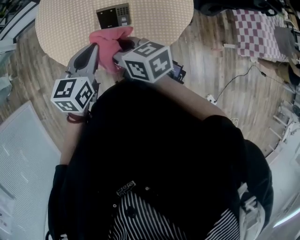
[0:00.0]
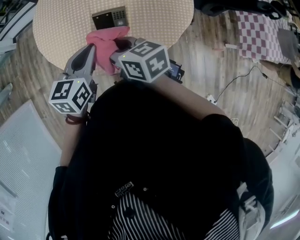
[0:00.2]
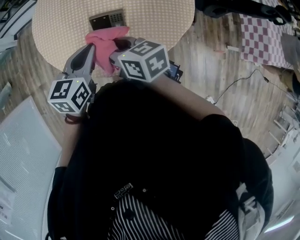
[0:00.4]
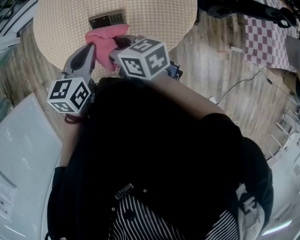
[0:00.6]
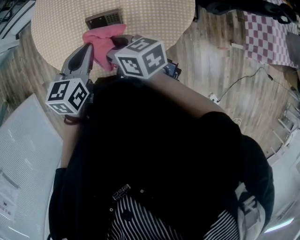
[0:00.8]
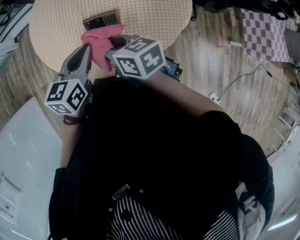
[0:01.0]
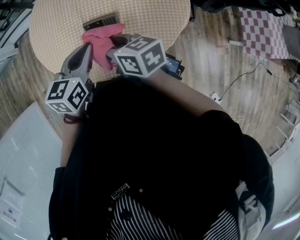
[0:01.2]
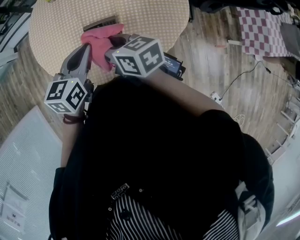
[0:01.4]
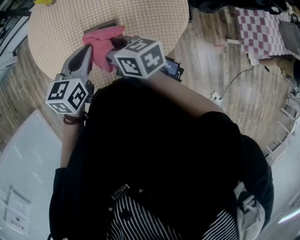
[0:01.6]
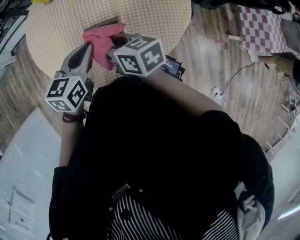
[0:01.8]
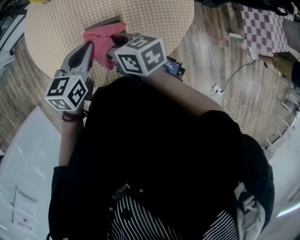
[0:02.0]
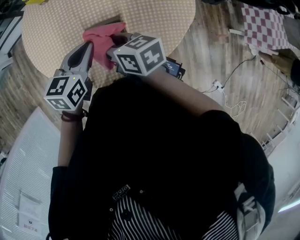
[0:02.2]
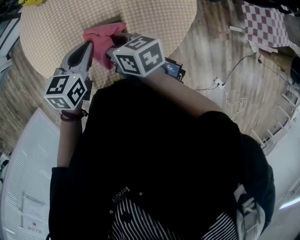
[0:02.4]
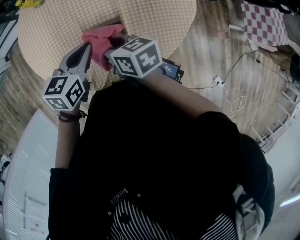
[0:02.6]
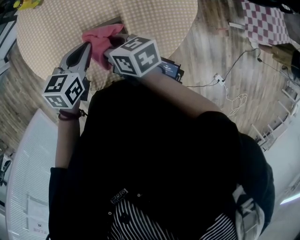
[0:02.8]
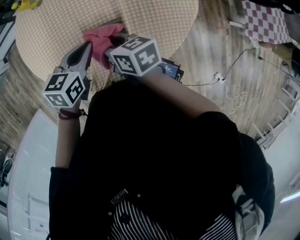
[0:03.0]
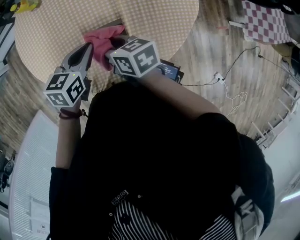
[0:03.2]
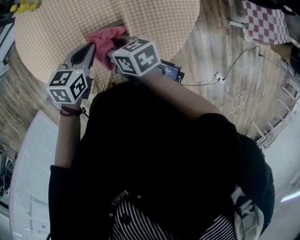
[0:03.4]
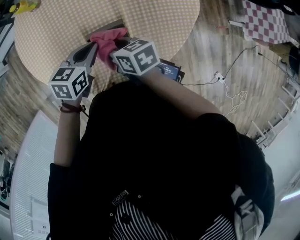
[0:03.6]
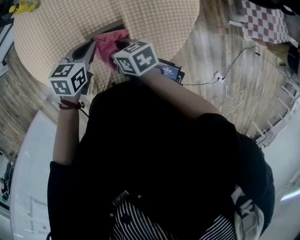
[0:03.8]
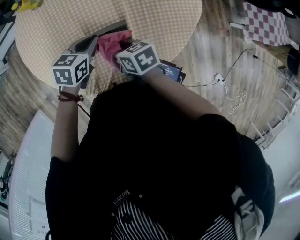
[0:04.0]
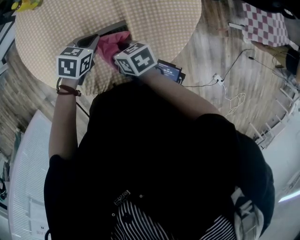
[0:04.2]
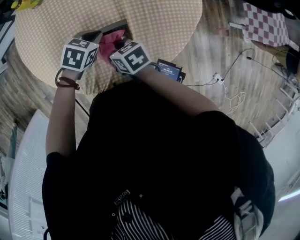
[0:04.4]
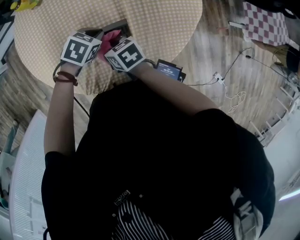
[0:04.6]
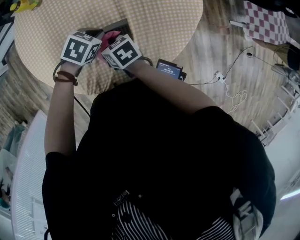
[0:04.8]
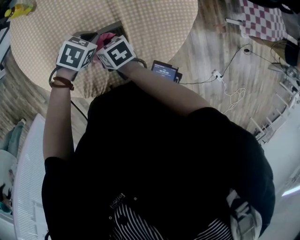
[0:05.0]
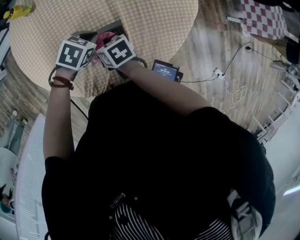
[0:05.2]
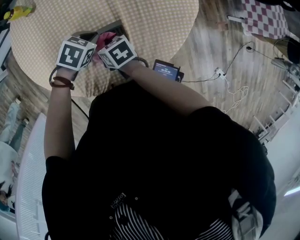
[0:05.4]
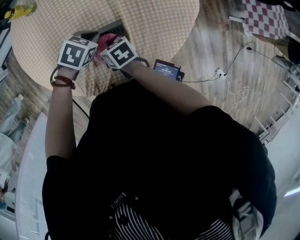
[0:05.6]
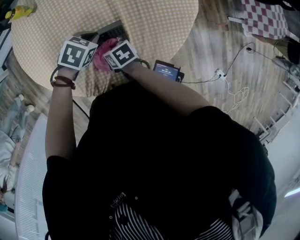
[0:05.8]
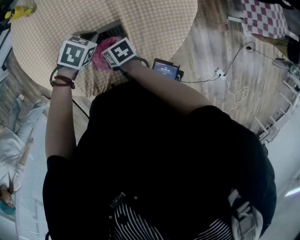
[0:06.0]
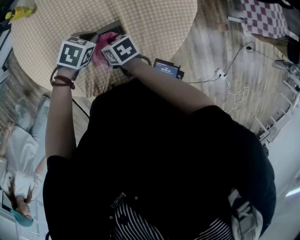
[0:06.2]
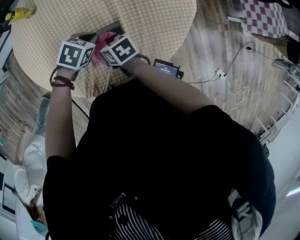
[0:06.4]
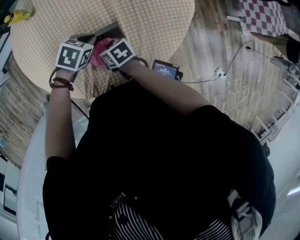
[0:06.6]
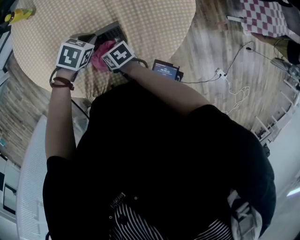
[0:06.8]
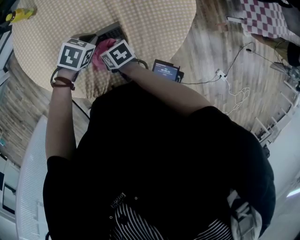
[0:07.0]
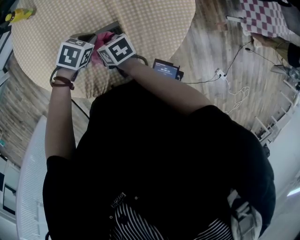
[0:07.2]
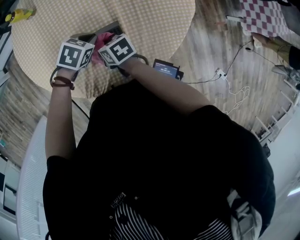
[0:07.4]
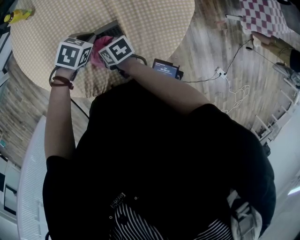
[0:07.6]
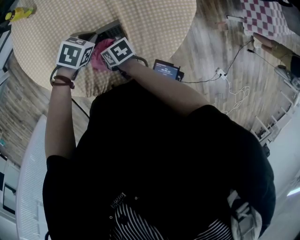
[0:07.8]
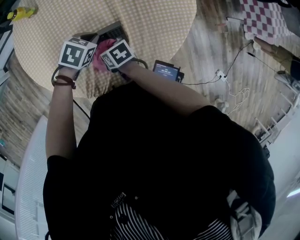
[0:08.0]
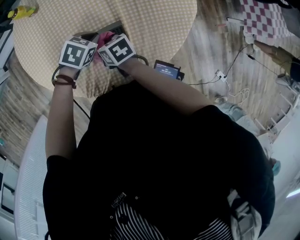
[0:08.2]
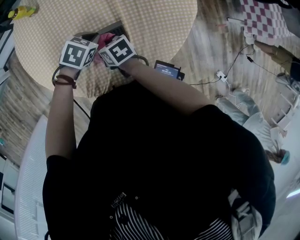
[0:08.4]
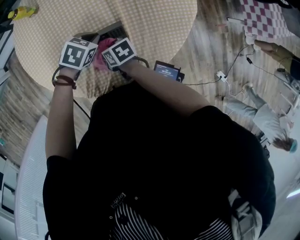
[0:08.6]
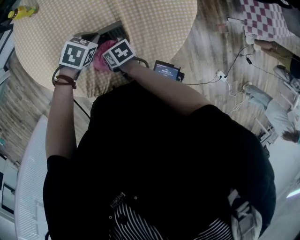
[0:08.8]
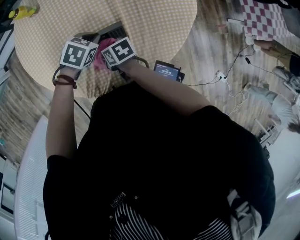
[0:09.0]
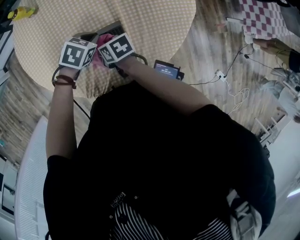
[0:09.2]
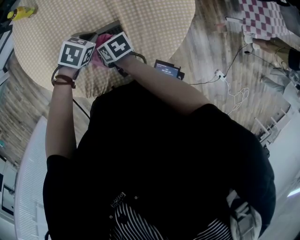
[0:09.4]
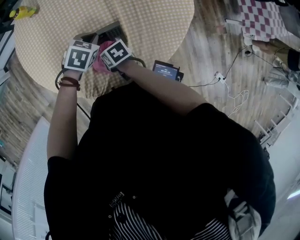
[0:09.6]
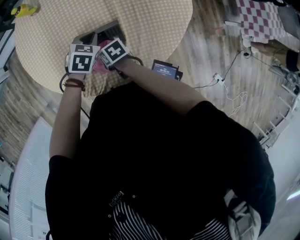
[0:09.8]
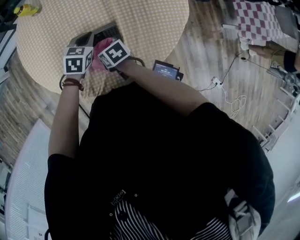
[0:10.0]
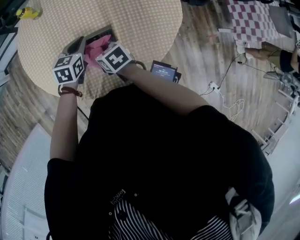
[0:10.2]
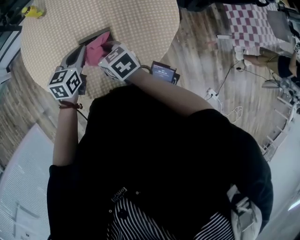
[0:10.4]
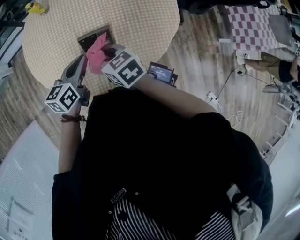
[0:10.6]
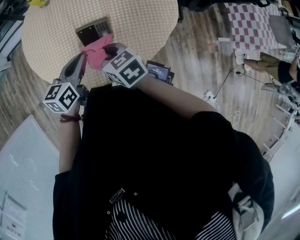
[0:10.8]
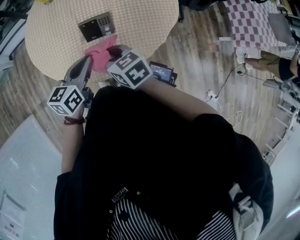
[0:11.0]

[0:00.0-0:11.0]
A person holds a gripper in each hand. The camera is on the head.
0:00.0 to 0:01.6: Both grippers travel together forward and to the right, approximately 15 cm.
0:01.6 to 0:03.2: Both grippers move downward and forward, roughly 15 cm.
0:03.2 to 0:04.8: The two grippers go about 10 cm downward. The left gripper changes its angle by roughly 40 degrees.
0:06.2 to 0:07.8: The right gripper moves up and down over about 5 cm, changing direction 2 times.
0:07.8 to 0:09.4: The right gripper moves up and down over approximately 5 cm, changing direction 2 times.
0:09.4 to 0:11.0: The left gripper shifts by roughly 30 cm, and tilts its fingers about 40 degrees upward. Meanwhile the right gripper moves upward, approximately 20 cm, and turns by some 30 degrees.

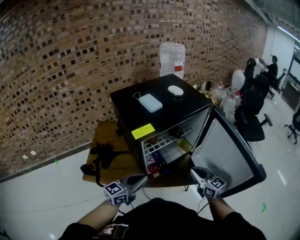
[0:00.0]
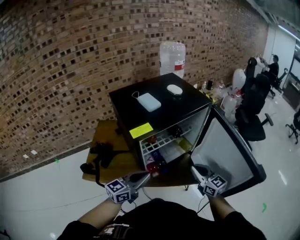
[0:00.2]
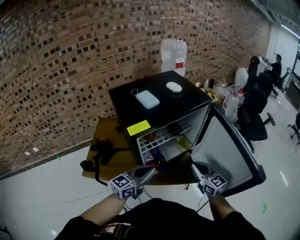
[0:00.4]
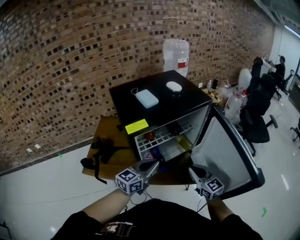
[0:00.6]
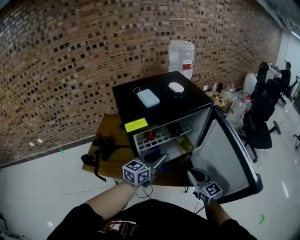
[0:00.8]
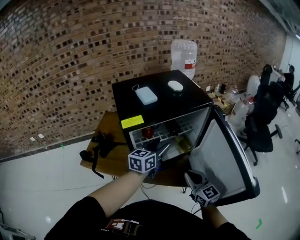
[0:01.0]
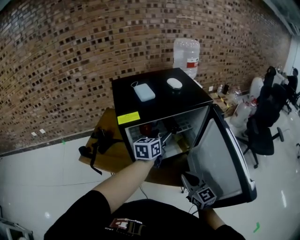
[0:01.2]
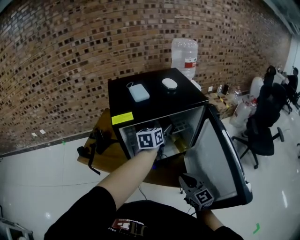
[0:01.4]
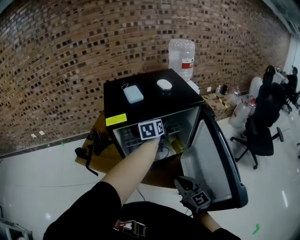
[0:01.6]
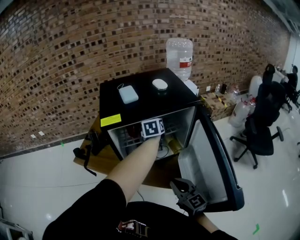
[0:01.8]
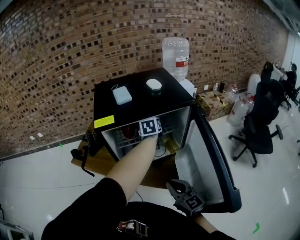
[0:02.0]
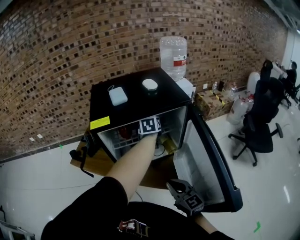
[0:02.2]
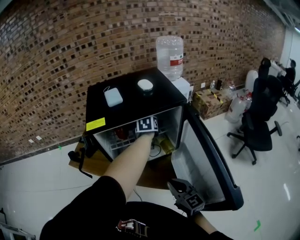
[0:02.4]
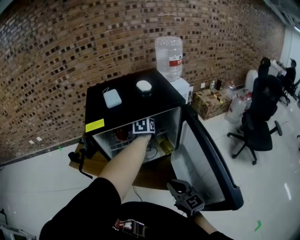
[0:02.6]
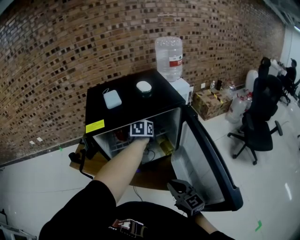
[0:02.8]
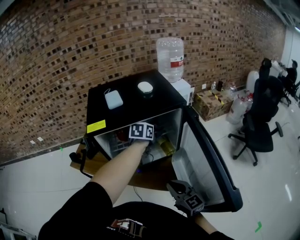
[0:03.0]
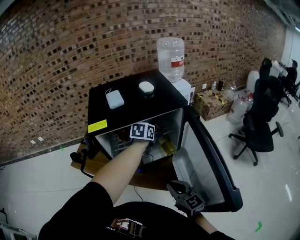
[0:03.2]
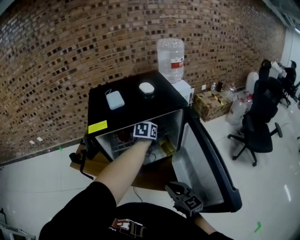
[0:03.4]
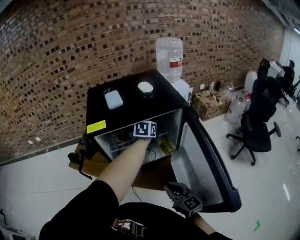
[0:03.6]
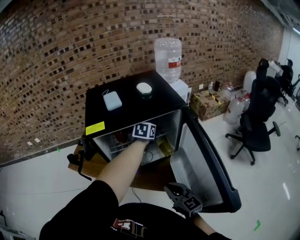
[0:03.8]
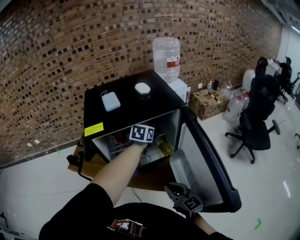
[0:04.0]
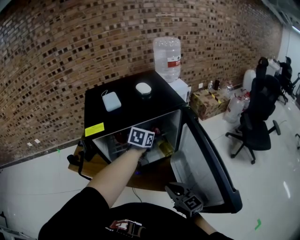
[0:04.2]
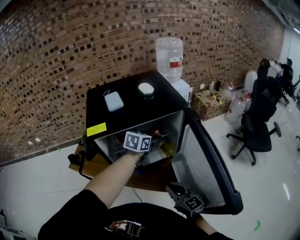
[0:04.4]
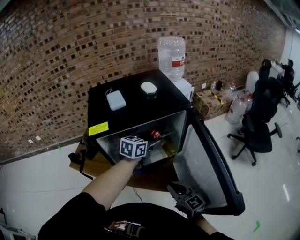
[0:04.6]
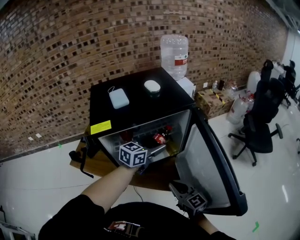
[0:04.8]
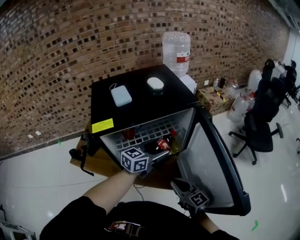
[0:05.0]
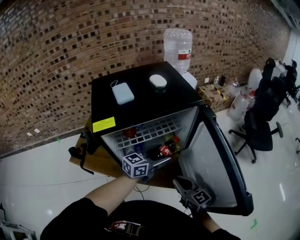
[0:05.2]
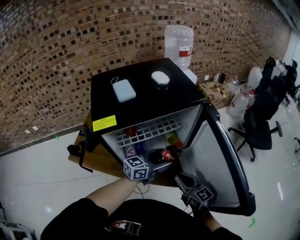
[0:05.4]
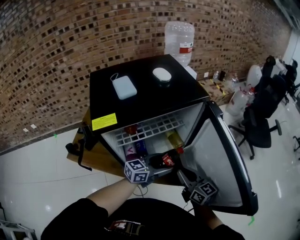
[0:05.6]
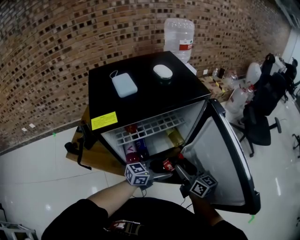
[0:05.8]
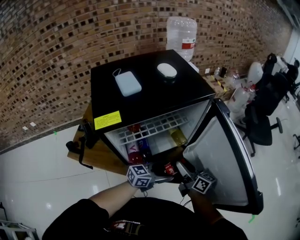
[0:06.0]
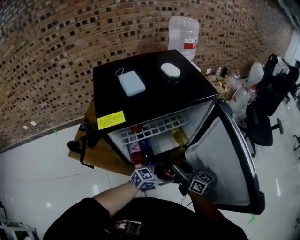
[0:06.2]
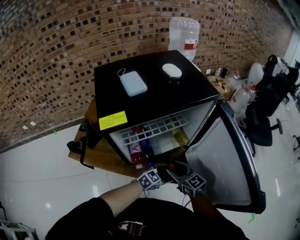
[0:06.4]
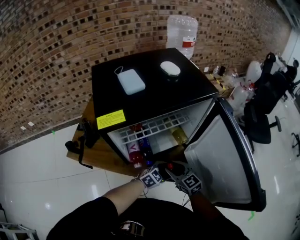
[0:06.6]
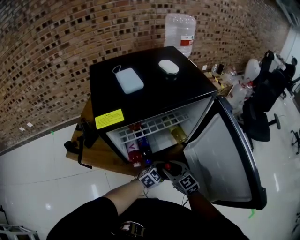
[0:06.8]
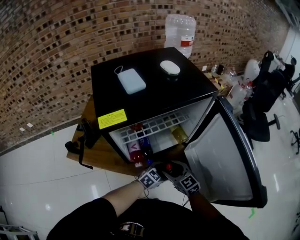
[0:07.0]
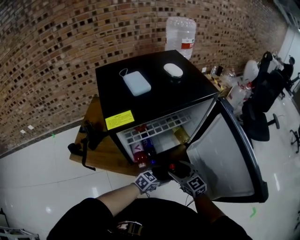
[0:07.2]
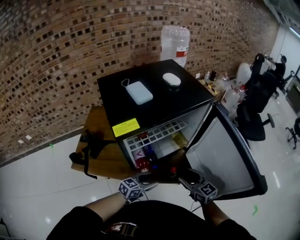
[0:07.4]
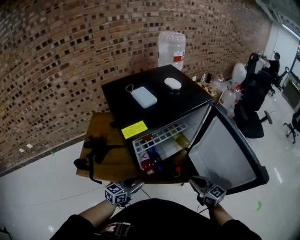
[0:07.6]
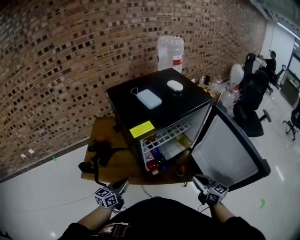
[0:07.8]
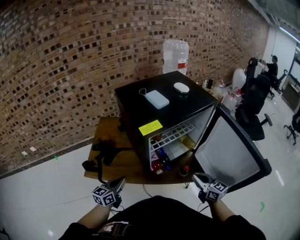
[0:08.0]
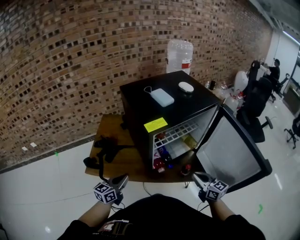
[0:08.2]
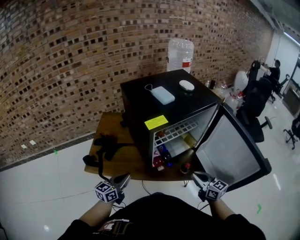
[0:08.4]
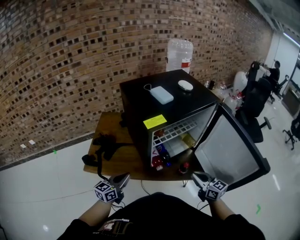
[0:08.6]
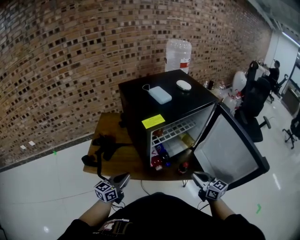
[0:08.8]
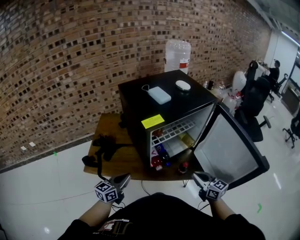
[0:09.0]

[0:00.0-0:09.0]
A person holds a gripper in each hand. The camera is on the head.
0:00.0 to 0:01.6: The right gripper changes place by approximately 5 cm; the left gripper changes place by about 35 cm, turns by about 50 degrees, and opens up.
0:01.6 to 0:03.0: The left gripper moves to the right and downward, some 10 cm, and rotates roughly 20 degrees.
0:03.0 to 0:04.4: The grippers stay close to where they were, moving slightly.
0:04.4 to 0:06.0: The right gripper heads forward, covering approximately 10 cm, swivels roughly 40 degrees, and opens its fingers. The left gripper moves backward and downward, some 20 cm, and swivels roughly 40 degrees.
0:06.0 to 0:07.6: The right gripper moves backward, some 15 cm, turns by approximately 30 degrees, and closes up. The left gripper heads to the left, covering about 25 cm.
0:07.6 to 0:09.0: The left gripper moves to the left, about 10 cm, and closes.

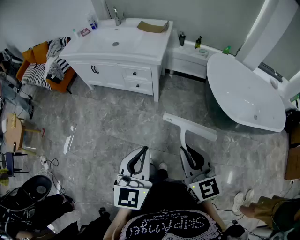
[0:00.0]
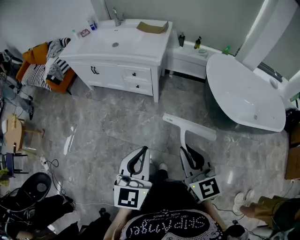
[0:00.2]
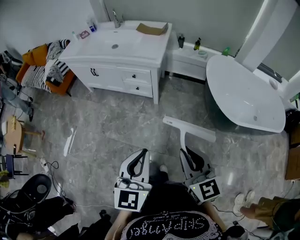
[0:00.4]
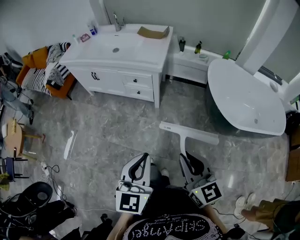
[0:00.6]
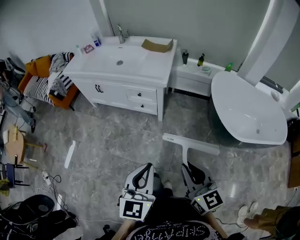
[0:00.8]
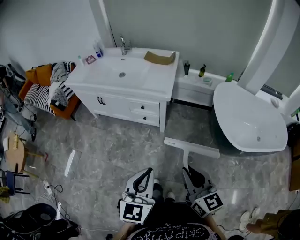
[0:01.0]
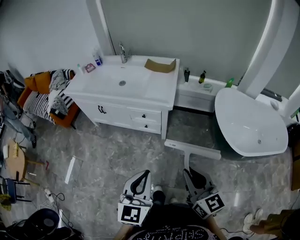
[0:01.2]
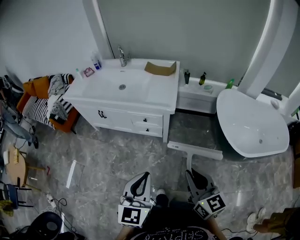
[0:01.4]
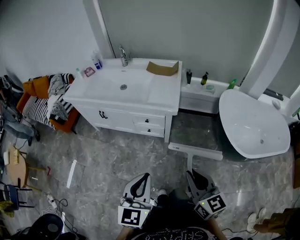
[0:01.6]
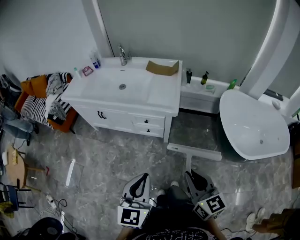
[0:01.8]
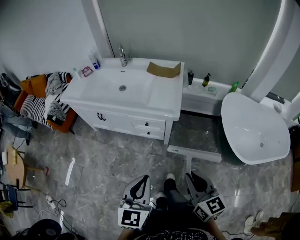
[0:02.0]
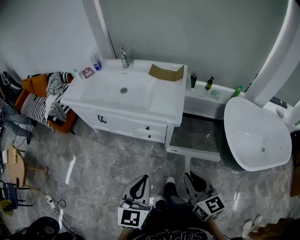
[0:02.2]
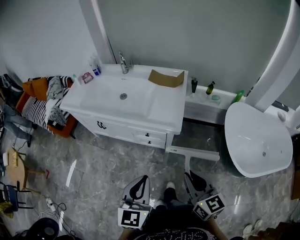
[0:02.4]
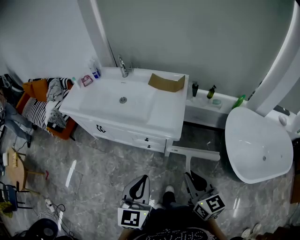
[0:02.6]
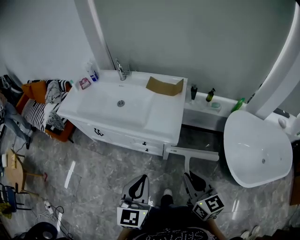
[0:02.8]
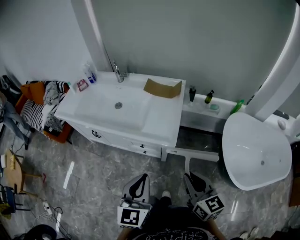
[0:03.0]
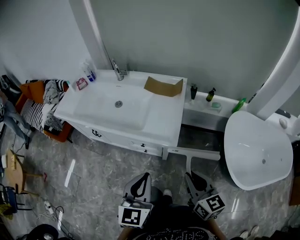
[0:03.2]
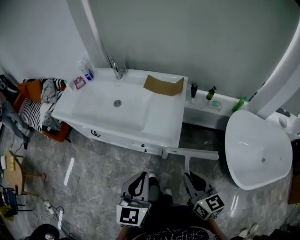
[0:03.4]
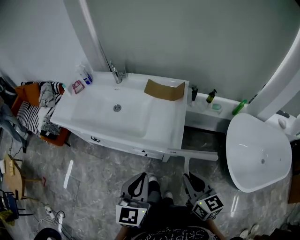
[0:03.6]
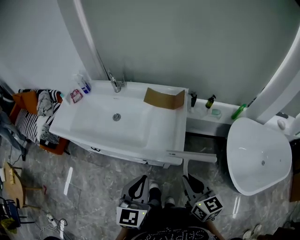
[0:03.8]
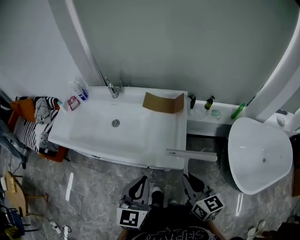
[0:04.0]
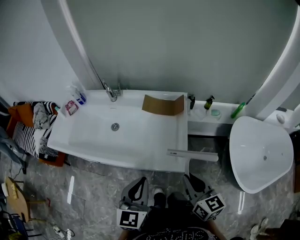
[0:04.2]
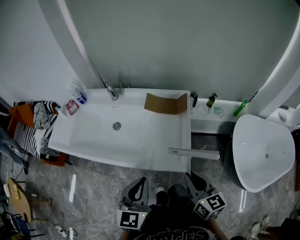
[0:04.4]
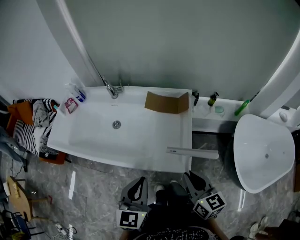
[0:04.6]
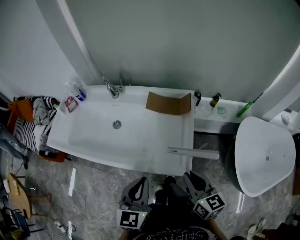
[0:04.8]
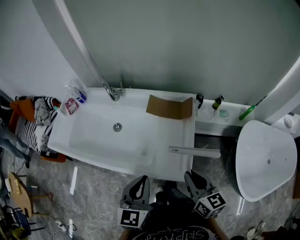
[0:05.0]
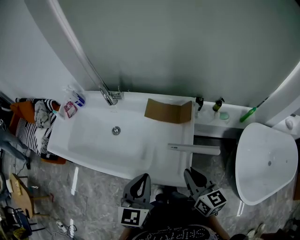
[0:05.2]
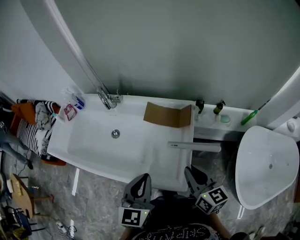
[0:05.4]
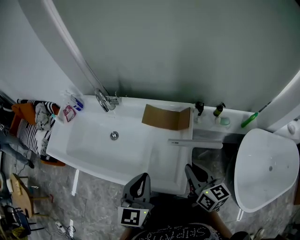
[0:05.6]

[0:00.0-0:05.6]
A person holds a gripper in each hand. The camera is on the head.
0:00.0 to 0:01.4: The grippers both shift forward and to the left by some 20 cm.
0:01.4 to 0:02.8: Both grippers travel together forward, about 20 cm.
0:02.8 to 0:04.2: The two grippers go about 20 cm forward.
0:04.2 to 0:05.6: Both grippers move forward, roughly 15 cm.
